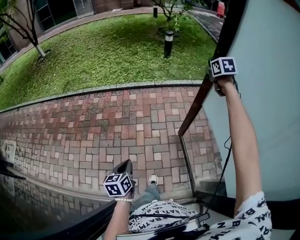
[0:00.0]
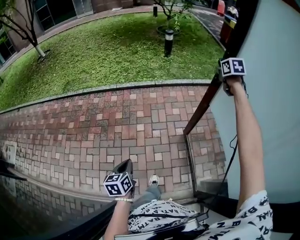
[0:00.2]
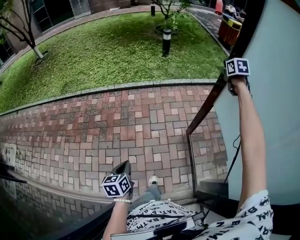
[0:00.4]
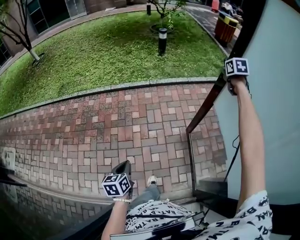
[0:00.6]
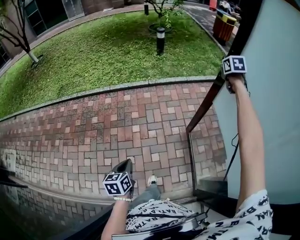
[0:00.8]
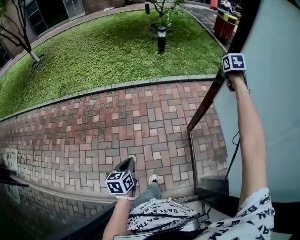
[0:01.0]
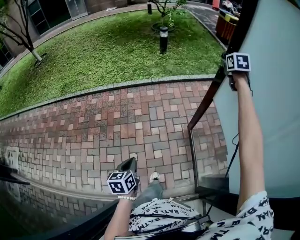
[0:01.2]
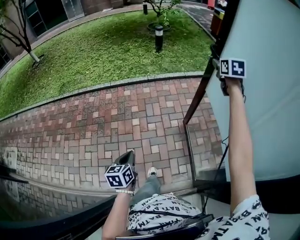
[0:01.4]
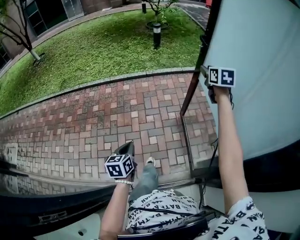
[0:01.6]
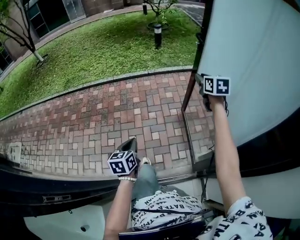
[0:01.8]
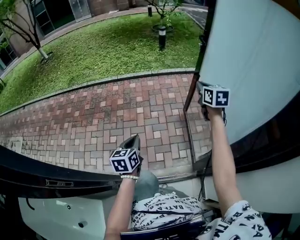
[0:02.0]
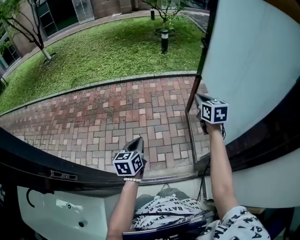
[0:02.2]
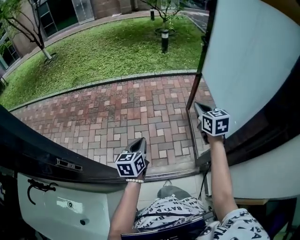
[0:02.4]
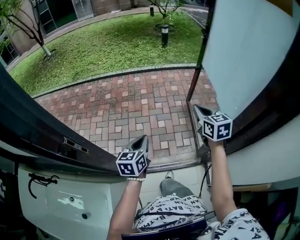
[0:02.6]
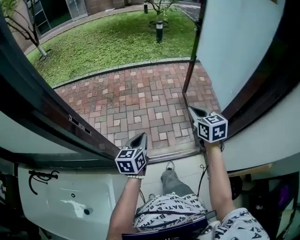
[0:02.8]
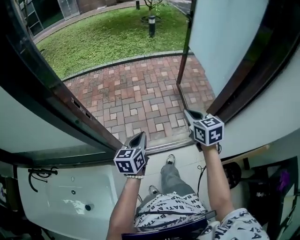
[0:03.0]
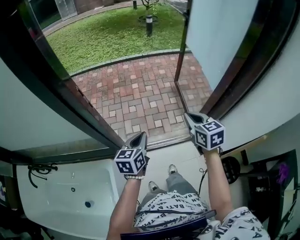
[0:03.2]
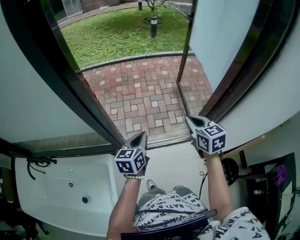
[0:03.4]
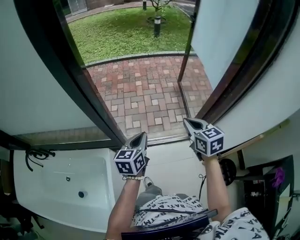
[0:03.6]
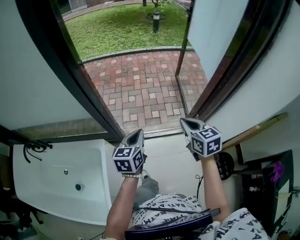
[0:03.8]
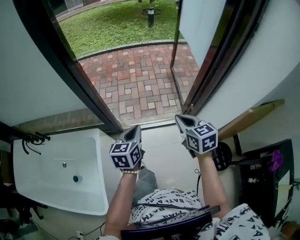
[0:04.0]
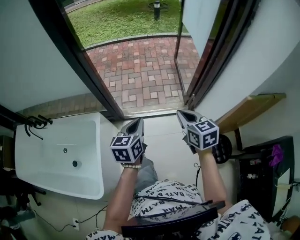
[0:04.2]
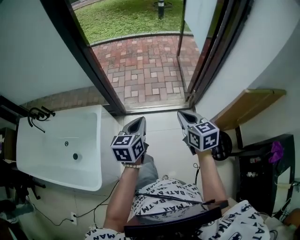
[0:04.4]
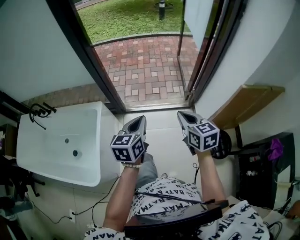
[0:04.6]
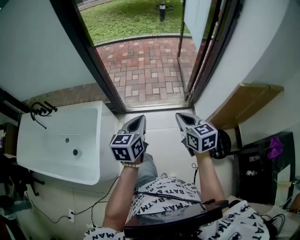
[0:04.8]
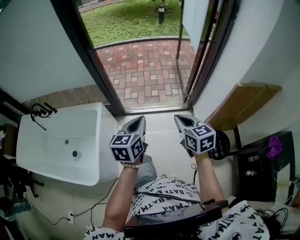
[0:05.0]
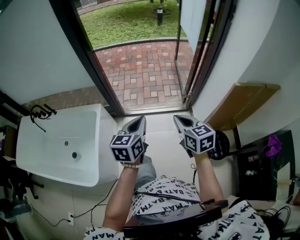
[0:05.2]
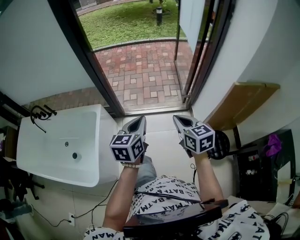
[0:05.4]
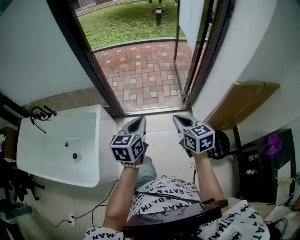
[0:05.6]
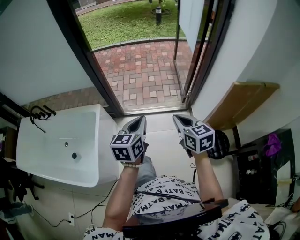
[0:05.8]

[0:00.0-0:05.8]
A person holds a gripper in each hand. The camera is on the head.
0:00.0 to 0:01.4: The left gripper is displaced to the right by approximately 5 cm. The right gripper shifts roughly 15 cm to the right and backward, and opens its fingers.
0:01.4 to 0:02.8: The right gripper travels backward by approximately 60 cm, rotates approximately 20 degrees, and closes. The left gripper travels backward by some 35 cm.
0:02.8 to 0:04.4: The two grippers travel together, backward, roughly 40 cm.
0:04.4 to 0:05.8: Both grippers travel together backward, approximately 5 cm.

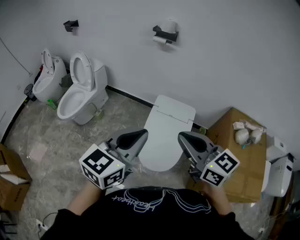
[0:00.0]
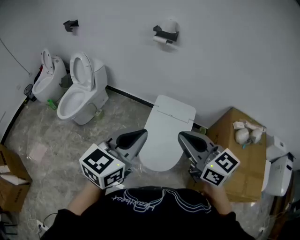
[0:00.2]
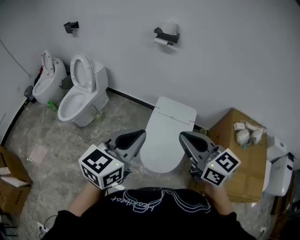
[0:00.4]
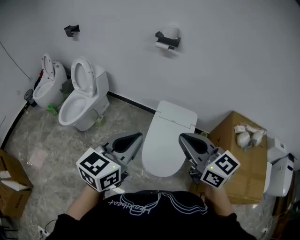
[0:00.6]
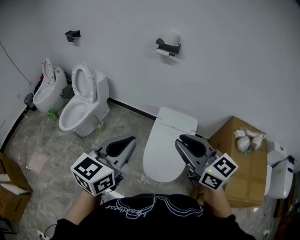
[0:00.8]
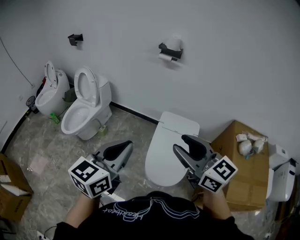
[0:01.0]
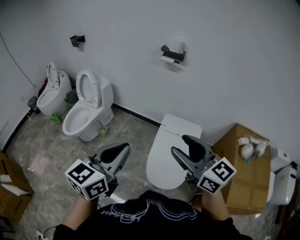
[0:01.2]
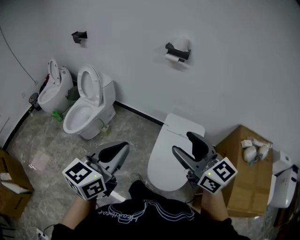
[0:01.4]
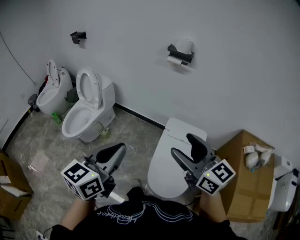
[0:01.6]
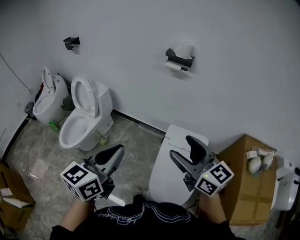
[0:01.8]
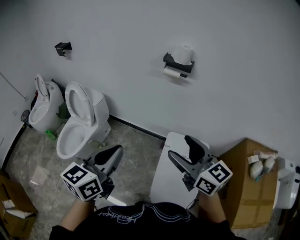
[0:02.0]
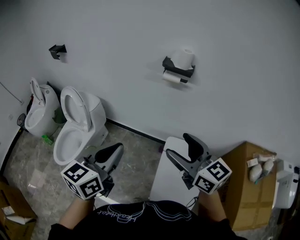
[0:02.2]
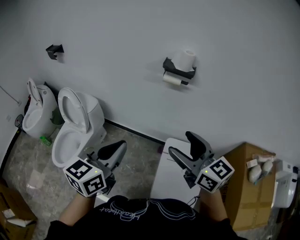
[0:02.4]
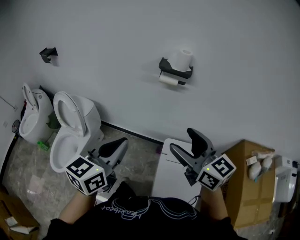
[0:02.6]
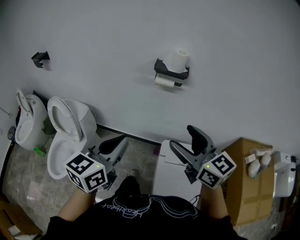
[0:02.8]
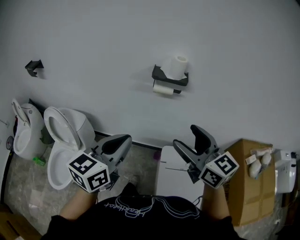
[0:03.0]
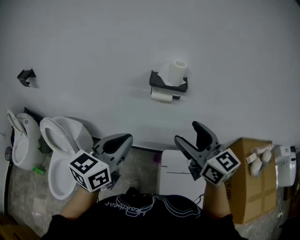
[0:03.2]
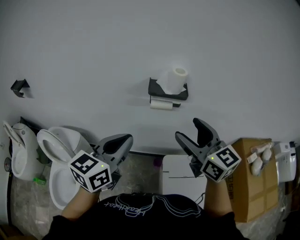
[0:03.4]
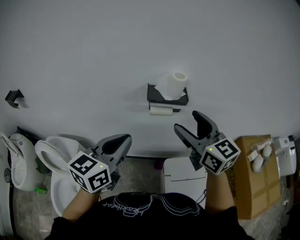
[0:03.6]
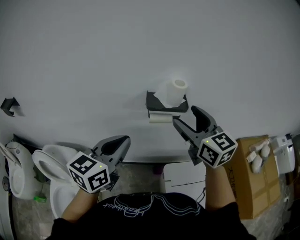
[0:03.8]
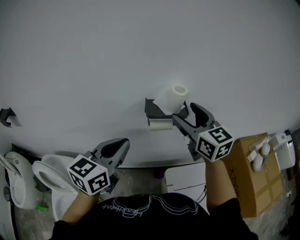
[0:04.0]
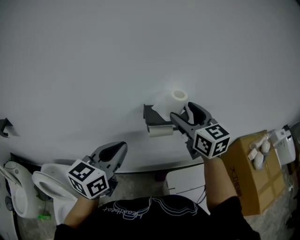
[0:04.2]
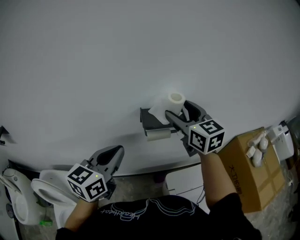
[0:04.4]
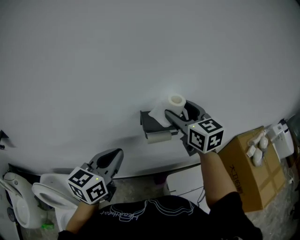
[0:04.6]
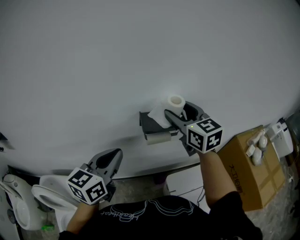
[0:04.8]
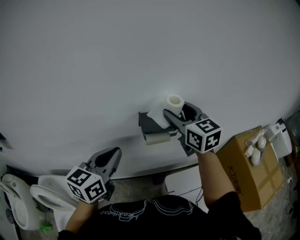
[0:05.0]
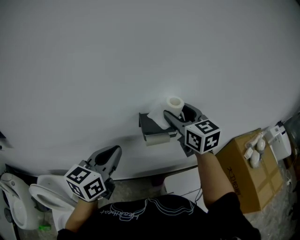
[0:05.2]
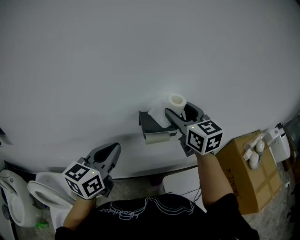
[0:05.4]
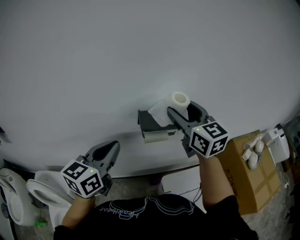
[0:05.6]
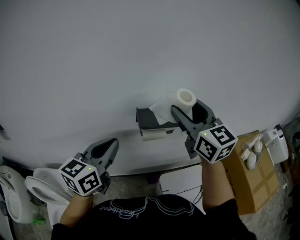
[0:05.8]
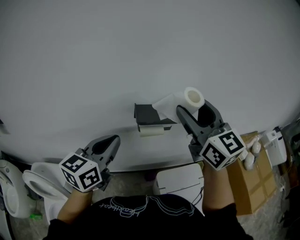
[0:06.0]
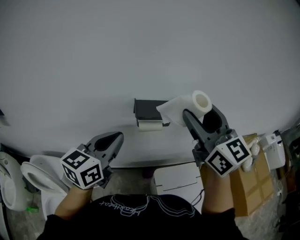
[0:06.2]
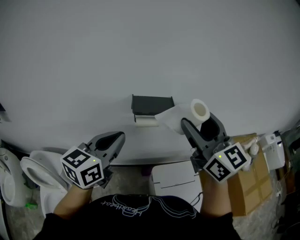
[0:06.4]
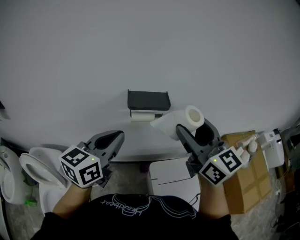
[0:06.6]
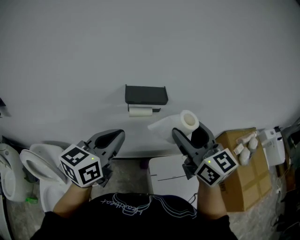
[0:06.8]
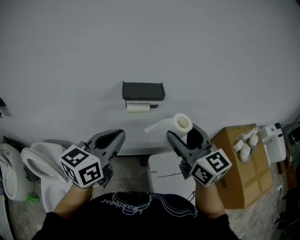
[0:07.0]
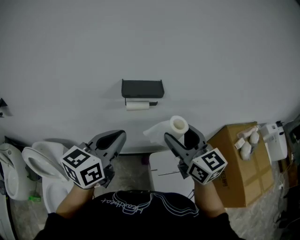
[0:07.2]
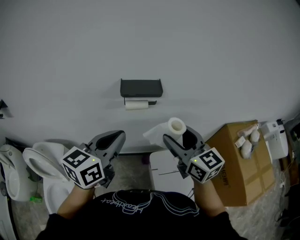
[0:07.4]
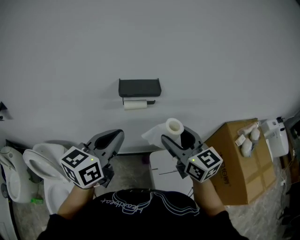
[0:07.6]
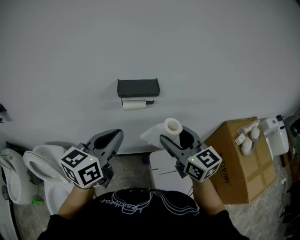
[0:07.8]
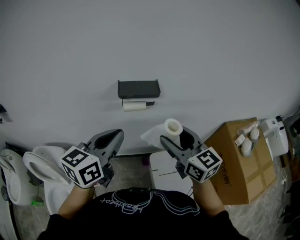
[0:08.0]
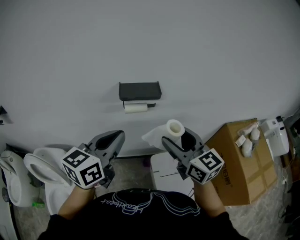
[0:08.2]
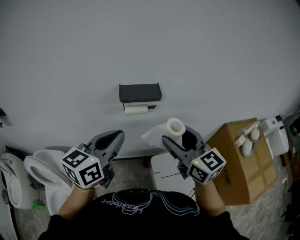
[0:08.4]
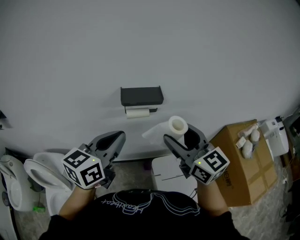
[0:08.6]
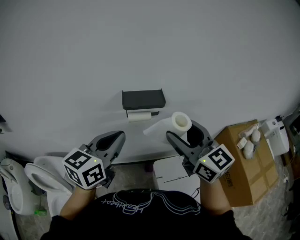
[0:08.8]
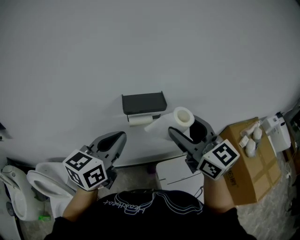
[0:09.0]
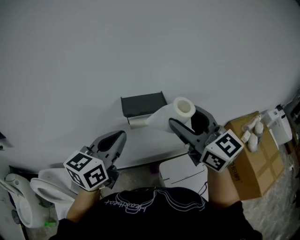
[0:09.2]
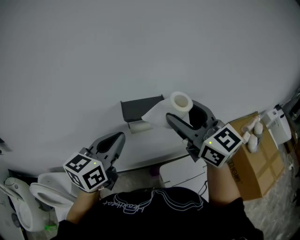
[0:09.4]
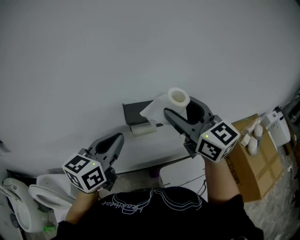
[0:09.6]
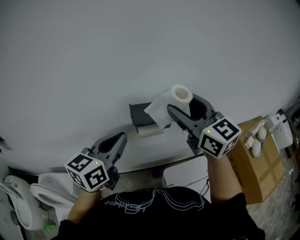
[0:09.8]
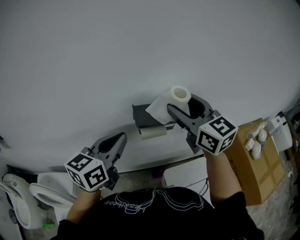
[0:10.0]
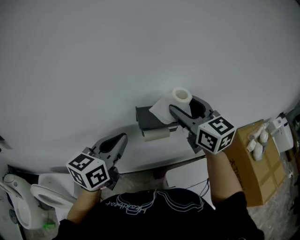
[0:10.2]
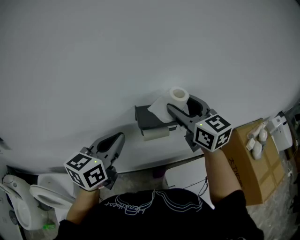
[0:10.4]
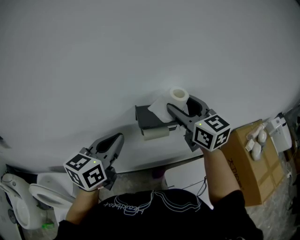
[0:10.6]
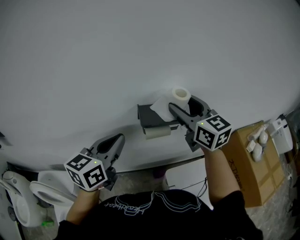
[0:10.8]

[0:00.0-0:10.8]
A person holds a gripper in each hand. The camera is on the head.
0:00.0 to 0:01.6: The right gripper moves forward and to the left, approximately 15 cm, and opens; the left gripper is displaced to the left and forward by about 15 cm.
0:01.6 to 0:03.0: The two grippers go some 35 cm forward.
0:03.0 to 0:04.6: The grippers both shift forward by approximately 30 cm. The right gripper swivels some 30 degrees.
0:04.6 to 0:06.2: The right gripper heads backward and upward, covering roughly 15 cm.
0:06.2 to 0:07.8: The left gripper moves backward and to the right, some 10 cm, while the right gripper goes approximately 20 cm downward and backward.
0:07.8 to 0:09.2: The right gripper goes some 10 cm upward and forward, while the left gripper is displaced forward by some 5 cm.
0:09.2 to 0:10.8: The left gripper is displaced to the left and forward by approximately 10 cm, while the right gripper travels forward by some 15 cm.

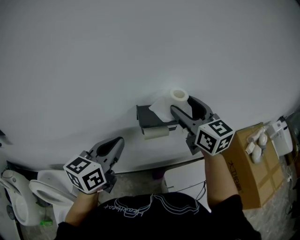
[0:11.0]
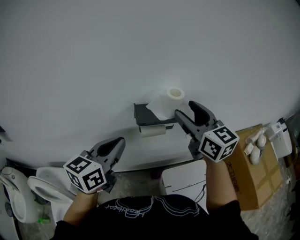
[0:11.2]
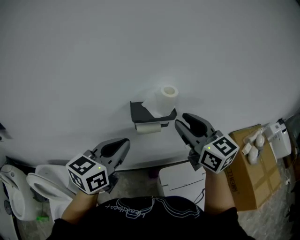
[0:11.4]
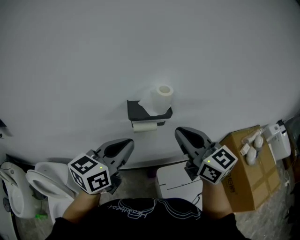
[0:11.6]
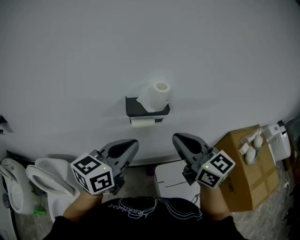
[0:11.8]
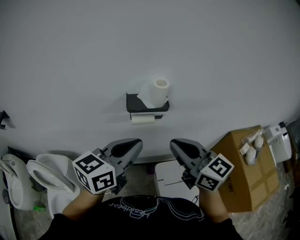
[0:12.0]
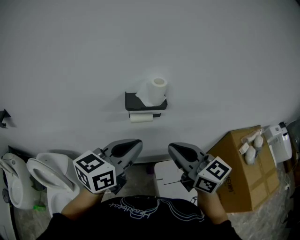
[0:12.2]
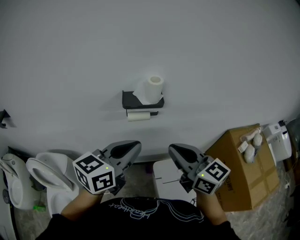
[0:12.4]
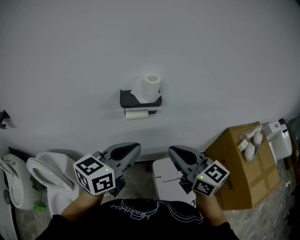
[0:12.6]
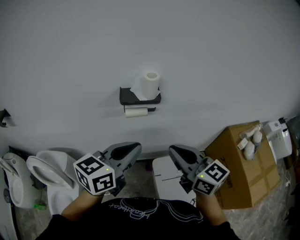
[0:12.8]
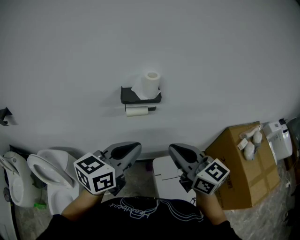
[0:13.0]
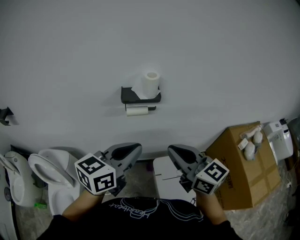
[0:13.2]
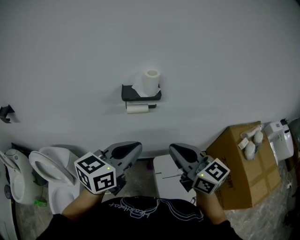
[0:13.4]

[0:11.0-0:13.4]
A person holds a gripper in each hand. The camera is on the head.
0:11.0 to 0:12.2: The left gripper travels to the right and backward by approximately 15 cm. Meanwhile the right gripper is displaced backward by roughly 20 cm, and closes.
0:12.2 to 0:13.4: The right gripper shifts by about 5 cm, while the left gripper moves backward, approximately 5 cm.

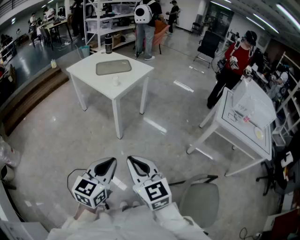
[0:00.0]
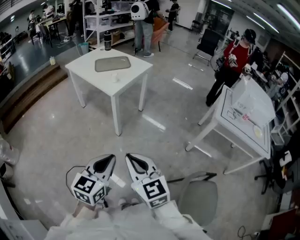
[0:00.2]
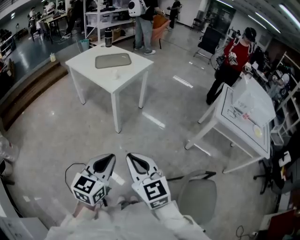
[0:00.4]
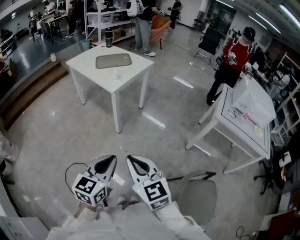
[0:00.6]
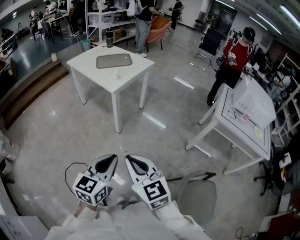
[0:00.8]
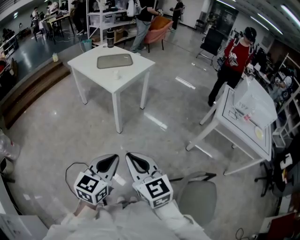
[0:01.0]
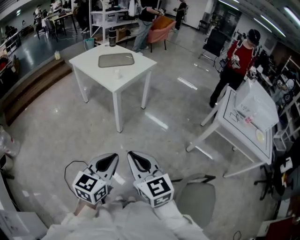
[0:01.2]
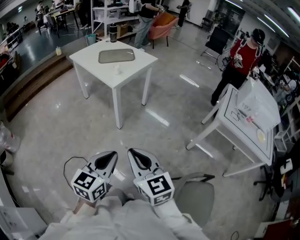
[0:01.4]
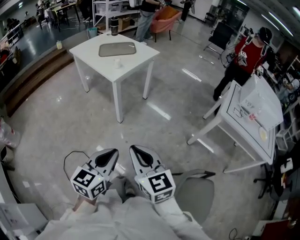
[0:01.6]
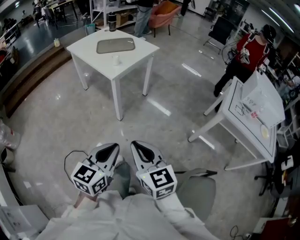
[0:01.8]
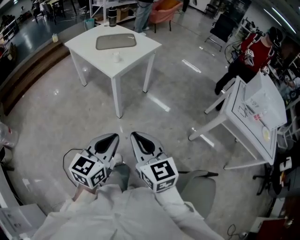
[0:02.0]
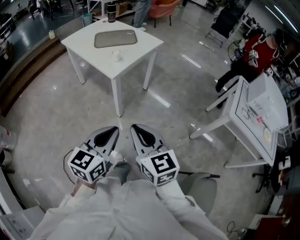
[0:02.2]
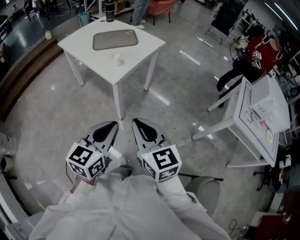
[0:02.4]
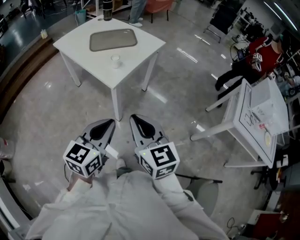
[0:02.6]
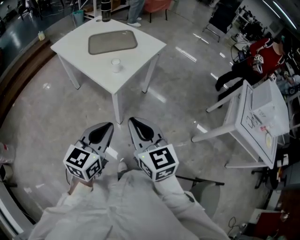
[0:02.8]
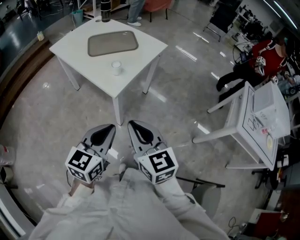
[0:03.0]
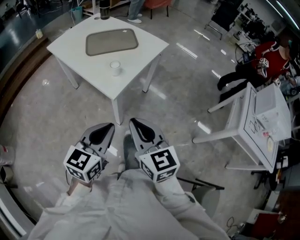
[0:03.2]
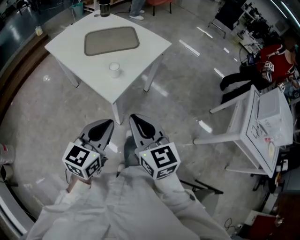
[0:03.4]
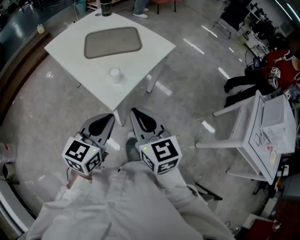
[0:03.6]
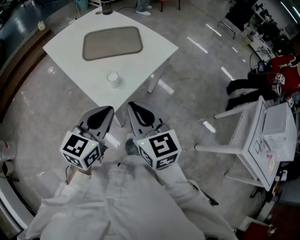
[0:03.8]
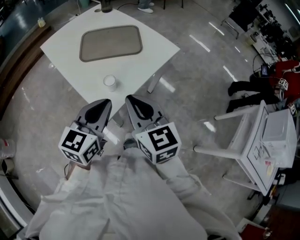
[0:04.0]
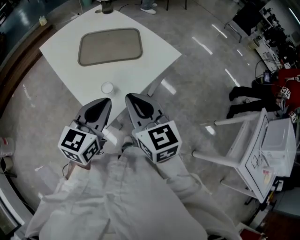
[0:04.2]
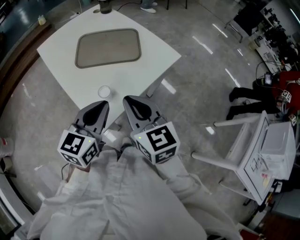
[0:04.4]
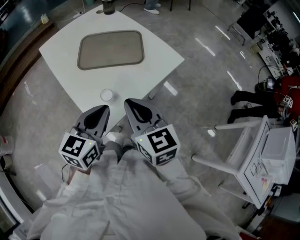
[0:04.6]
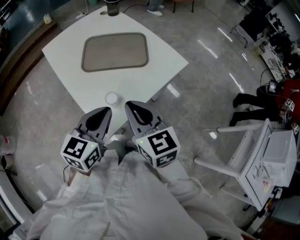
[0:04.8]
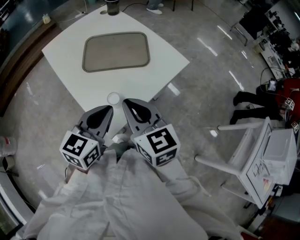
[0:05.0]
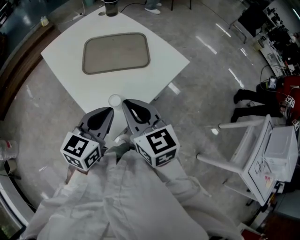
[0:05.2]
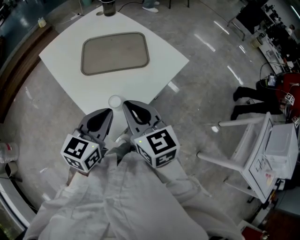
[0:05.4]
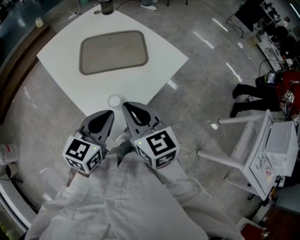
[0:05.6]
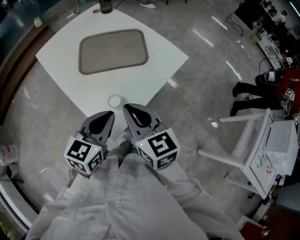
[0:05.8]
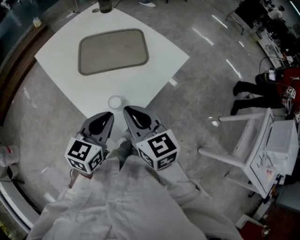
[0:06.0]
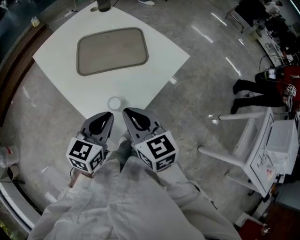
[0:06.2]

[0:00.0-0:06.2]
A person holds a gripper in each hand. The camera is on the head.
0:00.0 to 0:01.6: The left gripper ends up roughly 5 cm from where it was; the right gripper heads to the right, covering some 5 cm.
0:01.6 to 0:03.2: Both grippers move forward, roughly 40 cm.
0:03.2 to 0:04.6: The two grippers go about 30 cm forward.
0:04.6 to 0:06.2: The left gripper changes place by some 5 cm. The right gripper changes place by some 5 cm.
